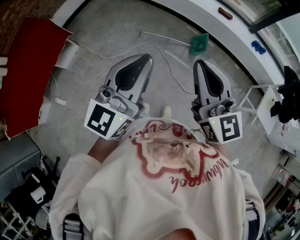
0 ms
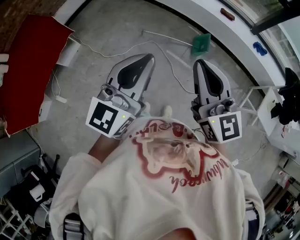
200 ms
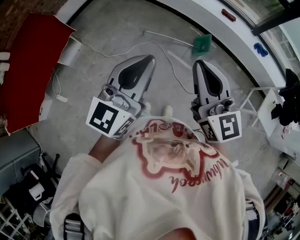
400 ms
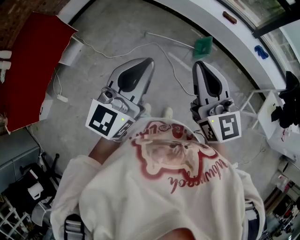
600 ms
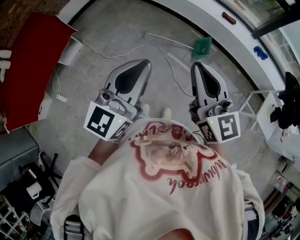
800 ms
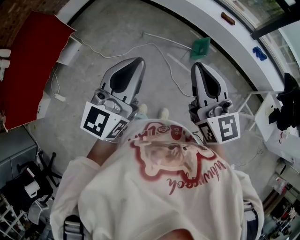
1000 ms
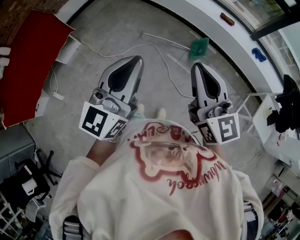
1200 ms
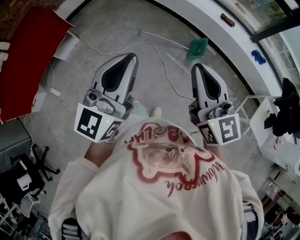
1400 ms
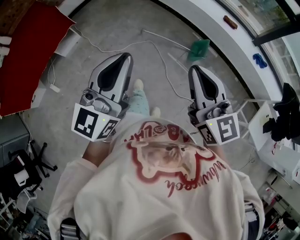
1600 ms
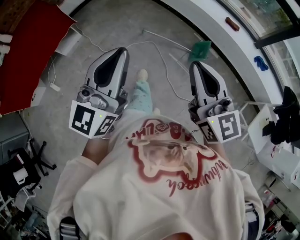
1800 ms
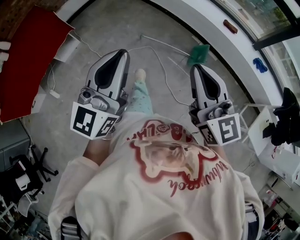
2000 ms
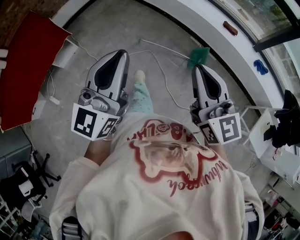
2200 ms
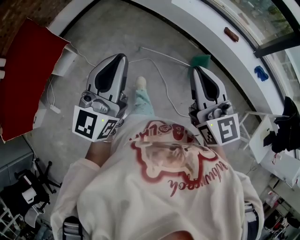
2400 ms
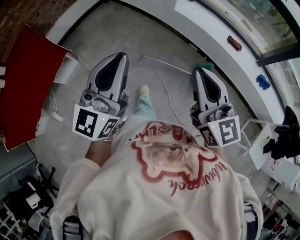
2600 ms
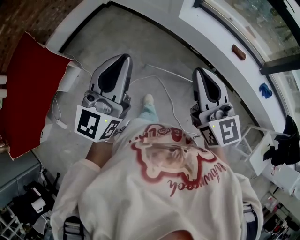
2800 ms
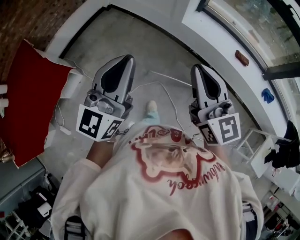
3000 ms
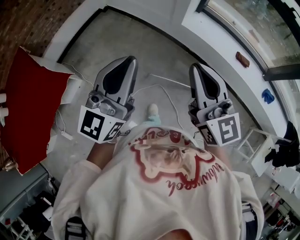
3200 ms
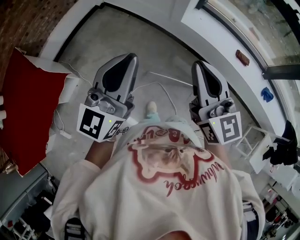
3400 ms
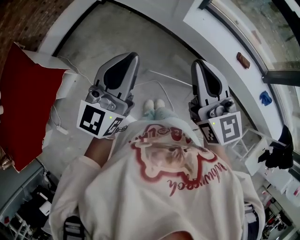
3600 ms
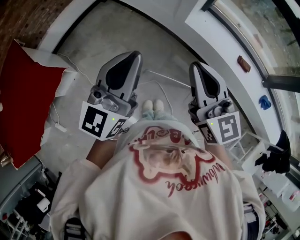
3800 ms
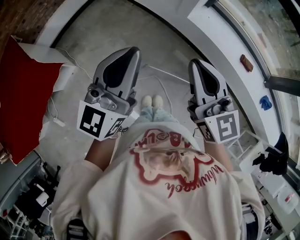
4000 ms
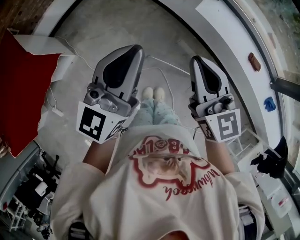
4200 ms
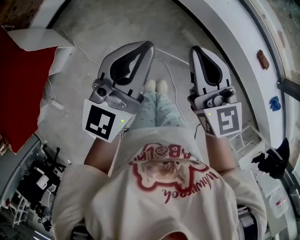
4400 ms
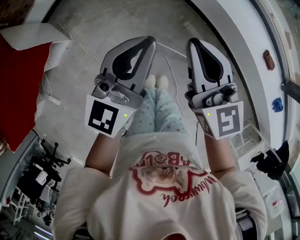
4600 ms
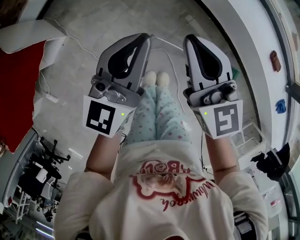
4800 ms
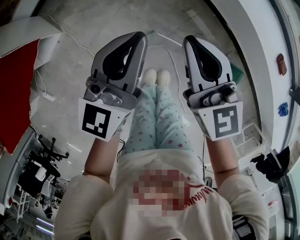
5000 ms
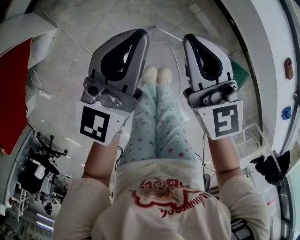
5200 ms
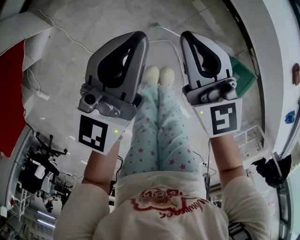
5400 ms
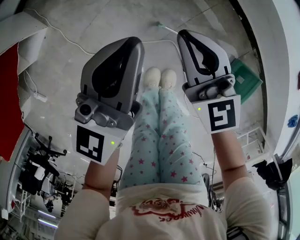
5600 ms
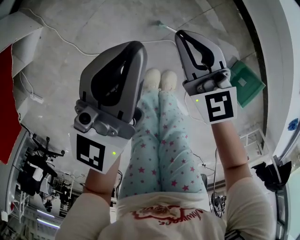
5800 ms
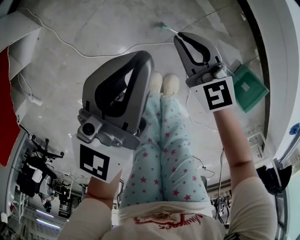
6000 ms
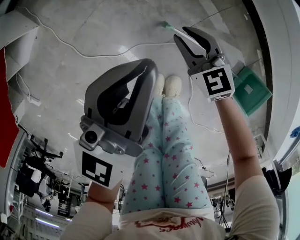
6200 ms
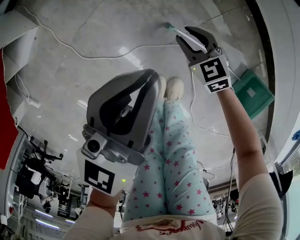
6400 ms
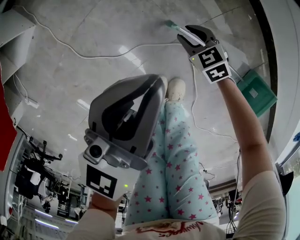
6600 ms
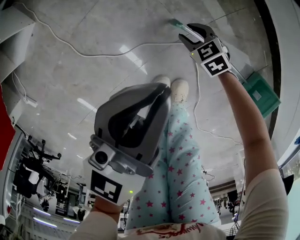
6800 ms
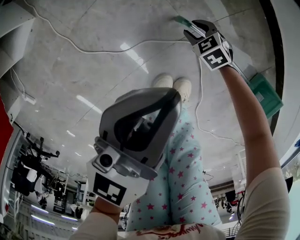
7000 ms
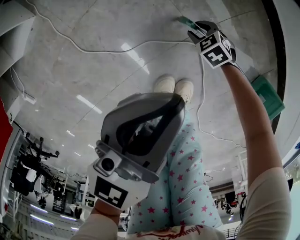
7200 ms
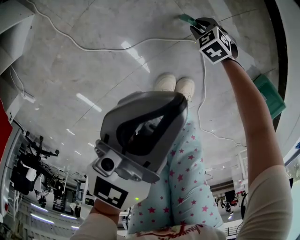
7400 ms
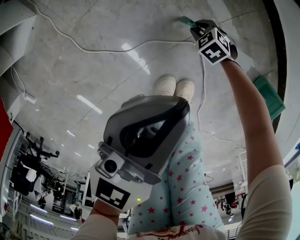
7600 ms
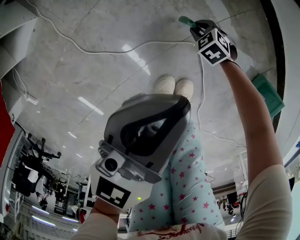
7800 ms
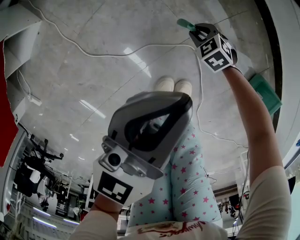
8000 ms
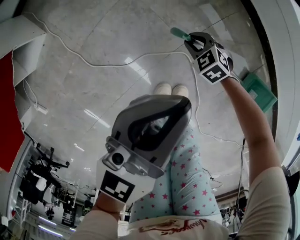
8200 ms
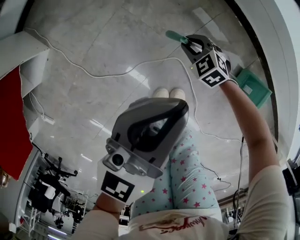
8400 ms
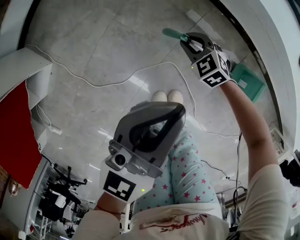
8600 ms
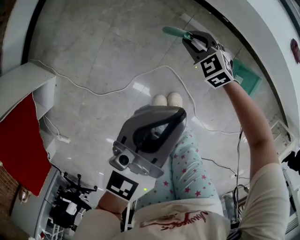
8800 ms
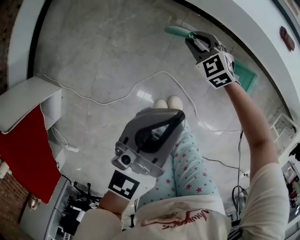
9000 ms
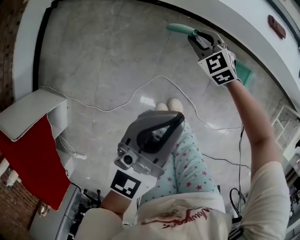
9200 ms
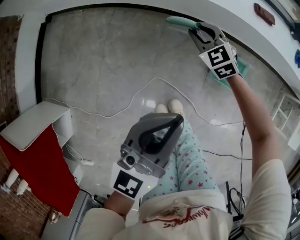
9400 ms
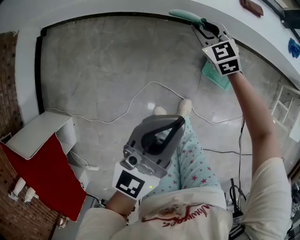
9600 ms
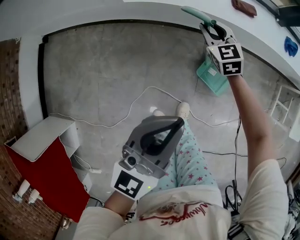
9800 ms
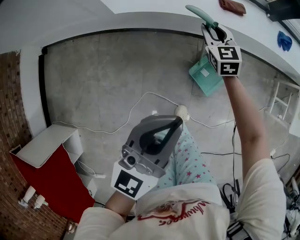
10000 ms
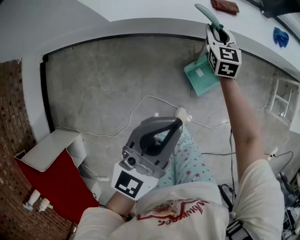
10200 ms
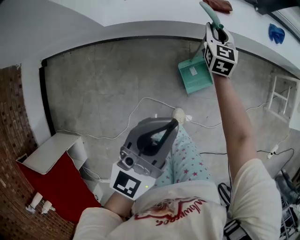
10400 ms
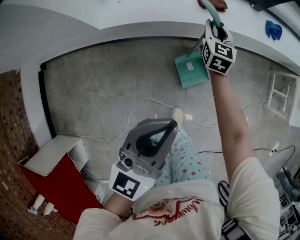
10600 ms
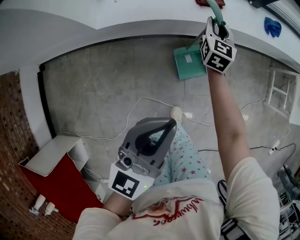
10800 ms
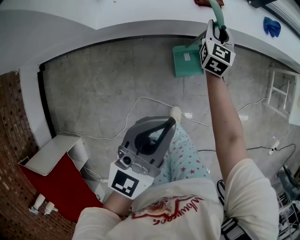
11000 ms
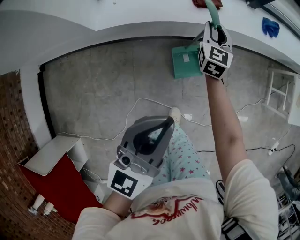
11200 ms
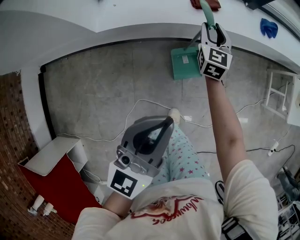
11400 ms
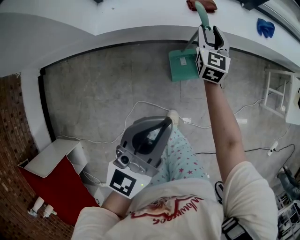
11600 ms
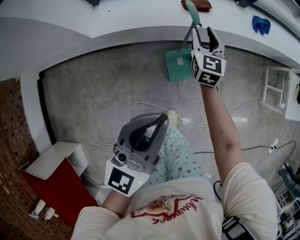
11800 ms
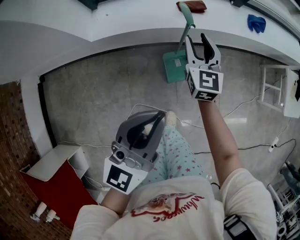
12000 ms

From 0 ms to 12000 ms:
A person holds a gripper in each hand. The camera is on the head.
From 0 ms to 1600 ms: The right gripper travels to the right by about 5 cm.
From 1600 ms to 3000 ms: Both grippers are carried forward, approximately 50 cm.
From 3000 ms to 4400 ms: Both grippers travel together forward and downward, some 25 cm.
From 4400 ms to 6000 ms: Both grippers travel together downward, about 50 cm. The right gripper rotates roughly 30 degrees.
From 6000 ms to 7600 ms: The right gripper is displaced downward by about 35 cm, and angles its fingers downward, by approximately 40 degrees. Meanwhile the left gripper travels downward and backward by some 10 cm.
From 7600 ms to 9000 ms: The right gripper is displaced upward by approximately 35 cm, and changes its angle by some 40 degrees. The left gripper goes approximately 25 cm upward, and changes its angle by roughly 30 degrees.
From 9000 ms to 10400 ms: The right gripper shifts by about 50 cm, and swivels roughly 70 degrees. Meanwhile the left gripper shifts by some 25 cm, and turns by some 20 degrees.
From 10400 ms to 12000 ms: The left gripper ends up about 5 cm from where it was. Meanwhile the right gripper heads upward and backward, covering some 10 cm.

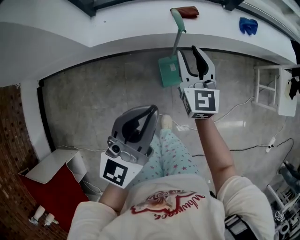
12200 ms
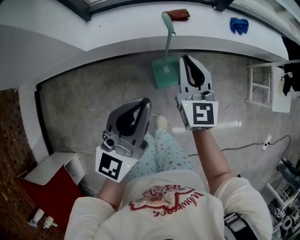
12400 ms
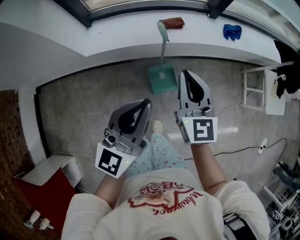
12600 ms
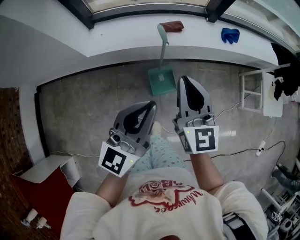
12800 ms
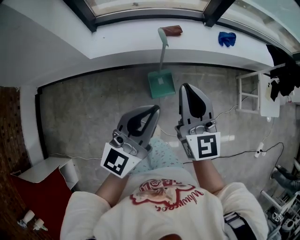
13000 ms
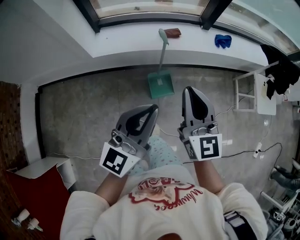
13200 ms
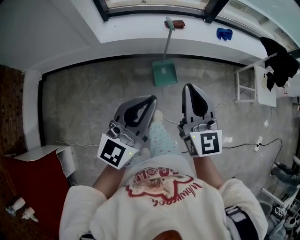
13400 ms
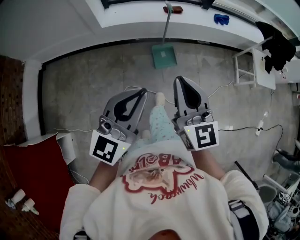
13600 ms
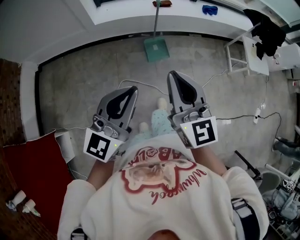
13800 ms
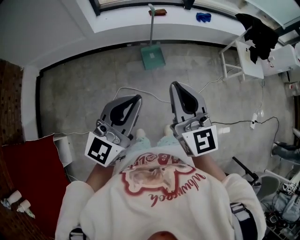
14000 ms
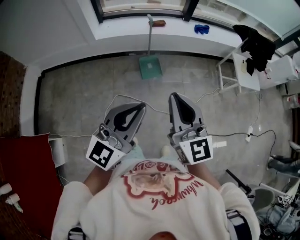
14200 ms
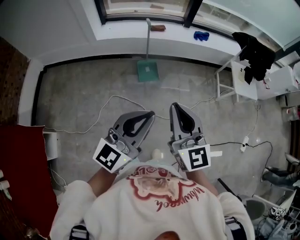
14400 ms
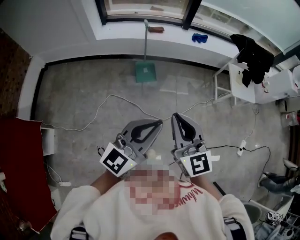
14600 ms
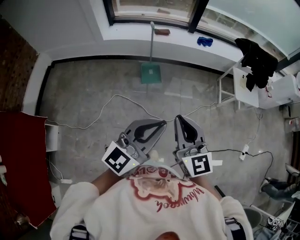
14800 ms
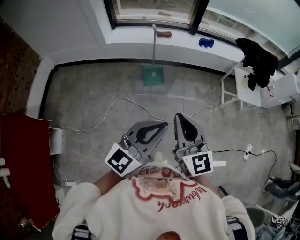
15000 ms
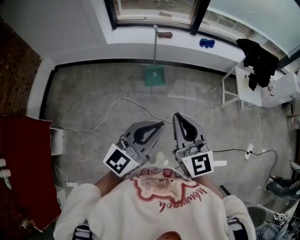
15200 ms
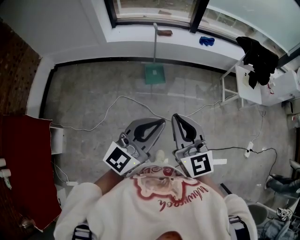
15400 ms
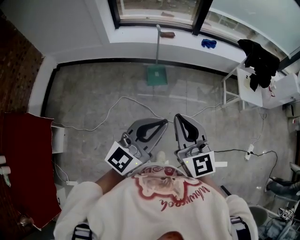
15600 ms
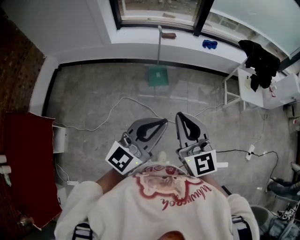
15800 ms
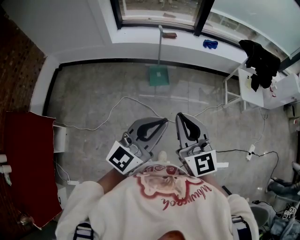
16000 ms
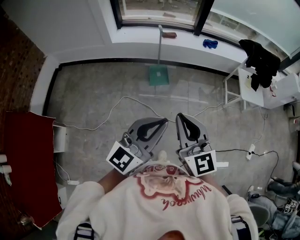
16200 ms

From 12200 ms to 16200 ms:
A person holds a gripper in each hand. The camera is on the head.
From 12200 ms to 13600 ms: The right gripper goes about 50 cm backward and upward, and closes up. The left gripper is displaced backward by about 30 cm.
From 13600 ms to 14800 ms: Both grippers travel together to the right and backward, roughly 35 cm.
From 14800 ms to 16200 ms: Both grippers travel together to the left, roughly 5 cm.

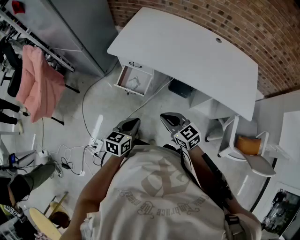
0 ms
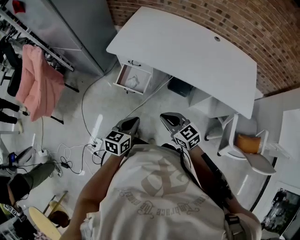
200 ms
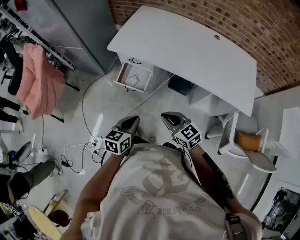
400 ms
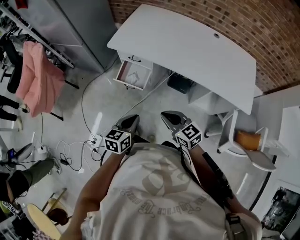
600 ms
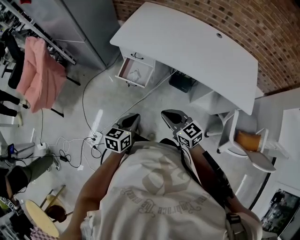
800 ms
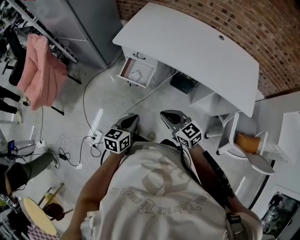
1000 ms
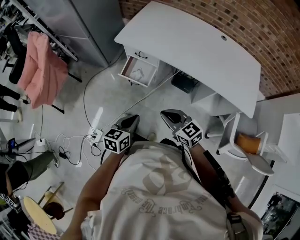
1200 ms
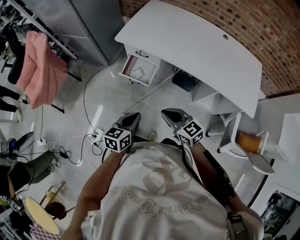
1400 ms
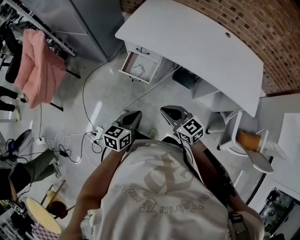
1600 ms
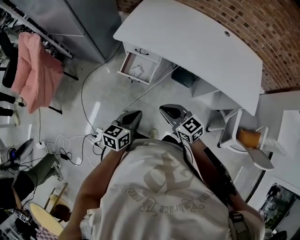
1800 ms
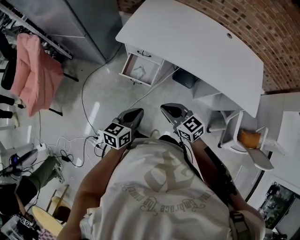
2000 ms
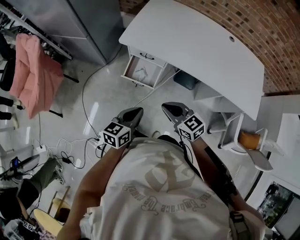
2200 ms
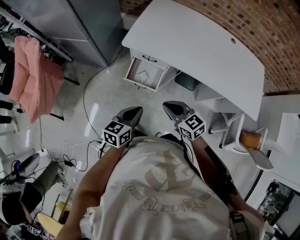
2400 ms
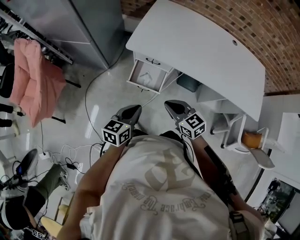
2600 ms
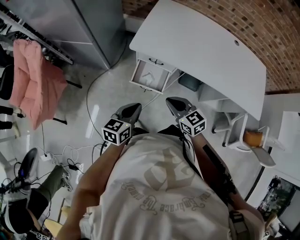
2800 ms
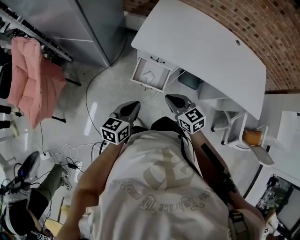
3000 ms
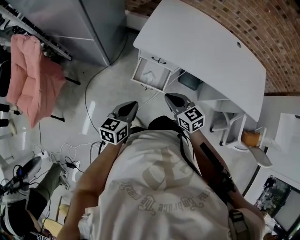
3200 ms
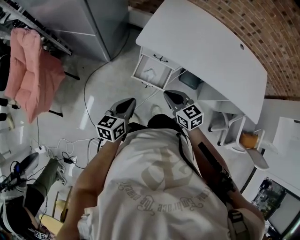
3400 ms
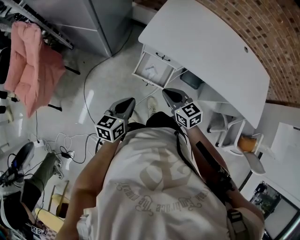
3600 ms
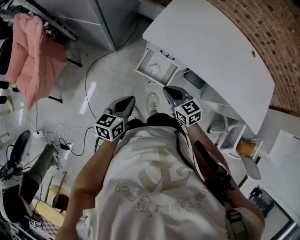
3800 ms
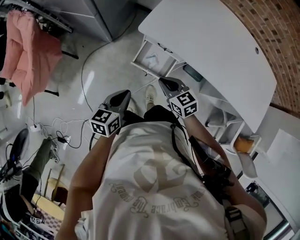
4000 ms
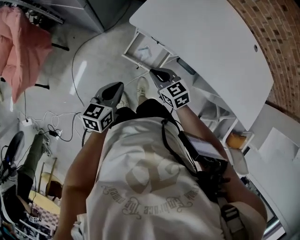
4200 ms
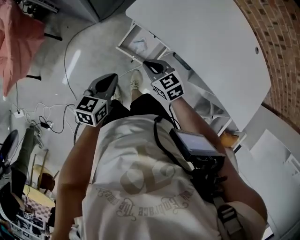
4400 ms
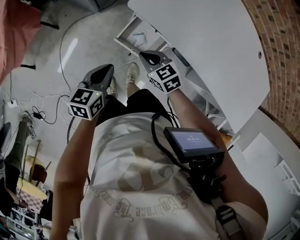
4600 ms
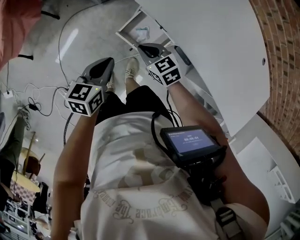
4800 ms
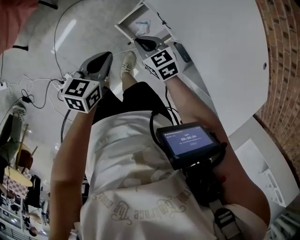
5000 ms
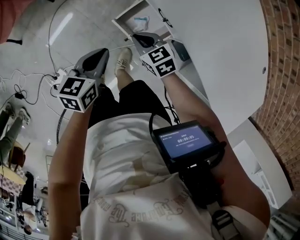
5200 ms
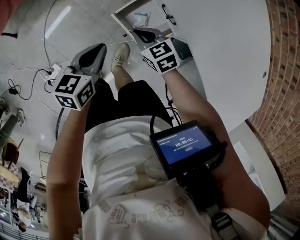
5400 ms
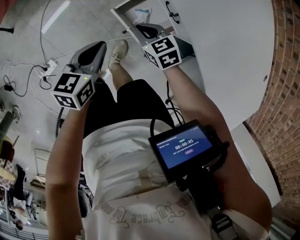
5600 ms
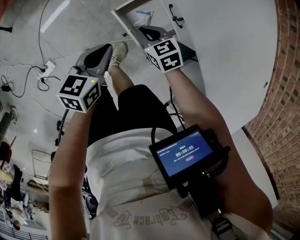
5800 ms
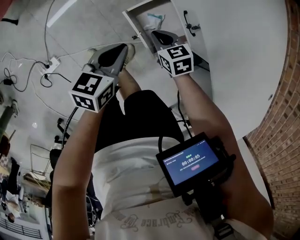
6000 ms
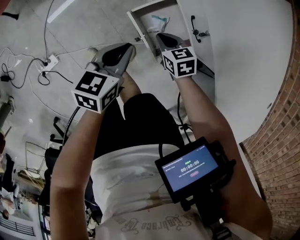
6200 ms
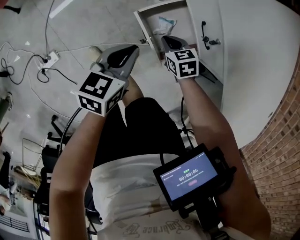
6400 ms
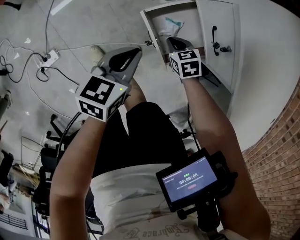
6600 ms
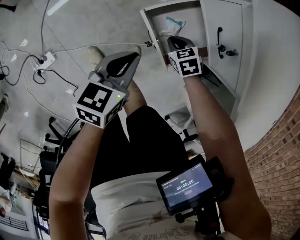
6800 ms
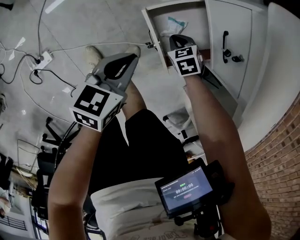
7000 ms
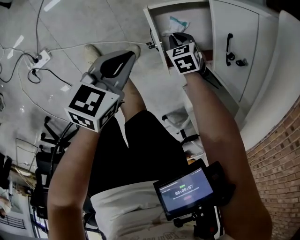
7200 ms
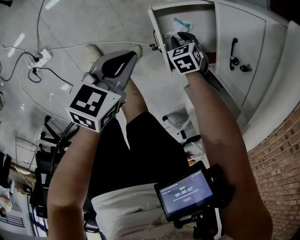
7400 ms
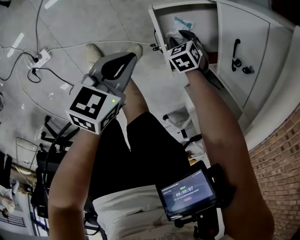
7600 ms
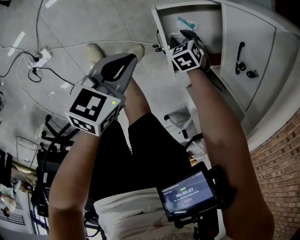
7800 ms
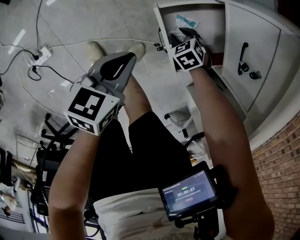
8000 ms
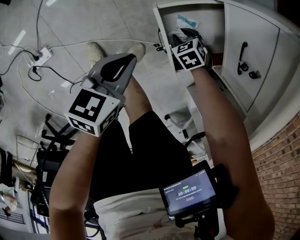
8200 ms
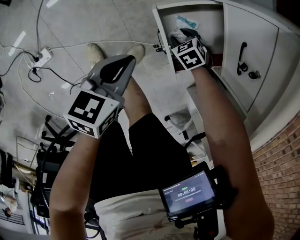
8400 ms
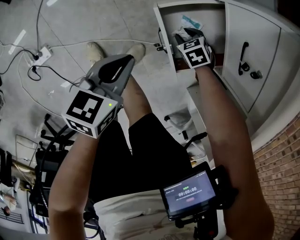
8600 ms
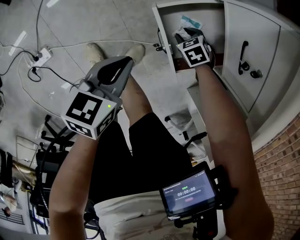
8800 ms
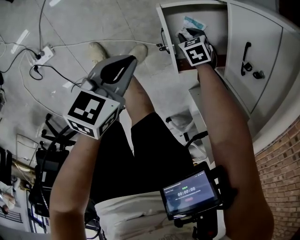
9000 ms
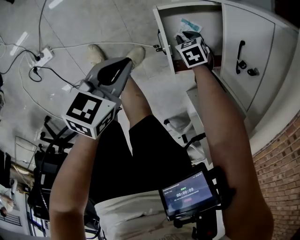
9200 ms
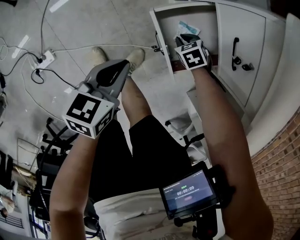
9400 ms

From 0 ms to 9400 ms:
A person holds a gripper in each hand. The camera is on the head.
From 0 ms to 1600 ms: The right gripper moves roughly 5 cm.
From 1600 ms to 3200 ms: The right gripper is displaced forward and to the left by roughly 25 cm. Meanwhile the left gripper is displaced to the left and forward by some 25 cm.
From 3200 ms to 4800 ms: The left gripper heads forward and downward, covering about 15 cm, and rotates some 20 degrees; the right gripper moves downward and forward, some 25 cm, and turns by about 30 degrees.
From 4800 ms to 6200 ms: The grippers both shift downward by approximately 15 cm.
From 6200 ms to 7800 ms: The right gripper heads downward, covering approximately 20 cm, rotates about 40 degrees, and opens up. The left gripper is displaced downward by roughly 15 cm.
From 7800 ms to 9400 ms: The right gripper closes its fingers.
